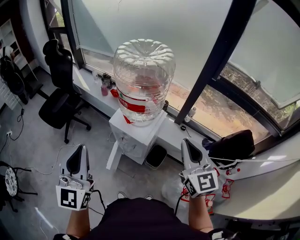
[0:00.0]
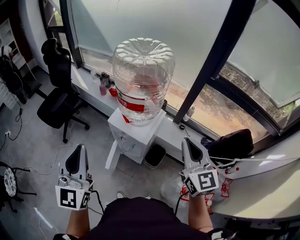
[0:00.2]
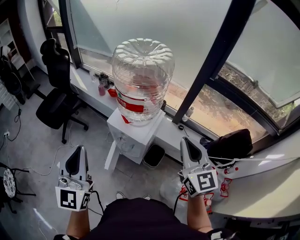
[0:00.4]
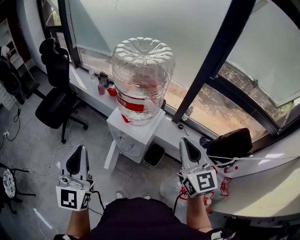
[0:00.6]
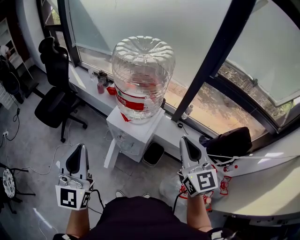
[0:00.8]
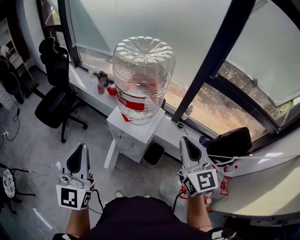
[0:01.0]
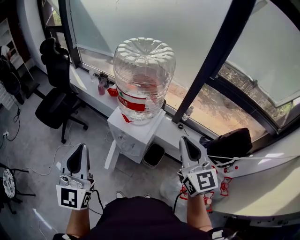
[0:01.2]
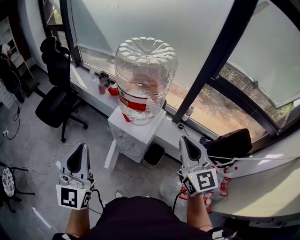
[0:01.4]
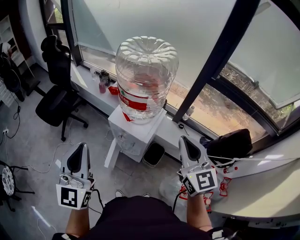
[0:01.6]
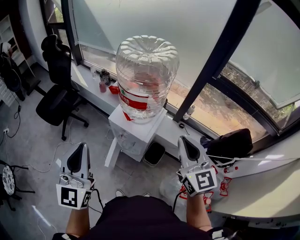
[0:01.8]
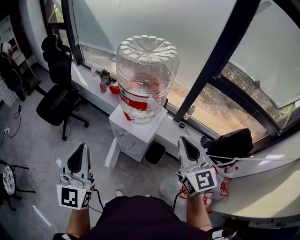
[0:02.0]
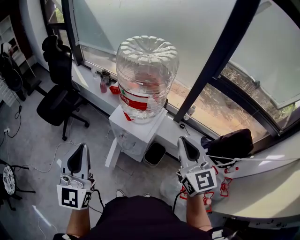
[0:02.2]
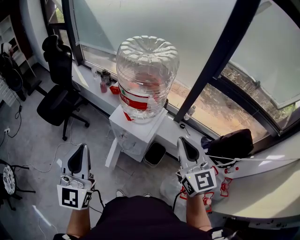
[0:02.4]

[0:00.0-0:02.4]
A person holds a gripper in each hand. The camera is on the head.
0:00.0 to 0:02.4: The grippers make only small movements.

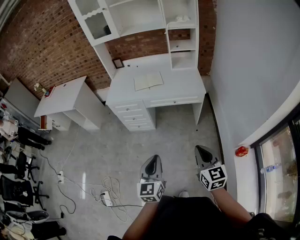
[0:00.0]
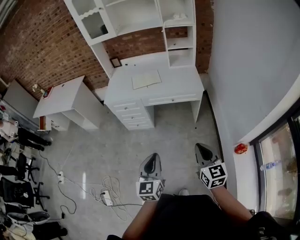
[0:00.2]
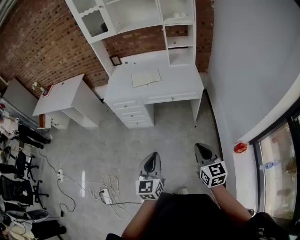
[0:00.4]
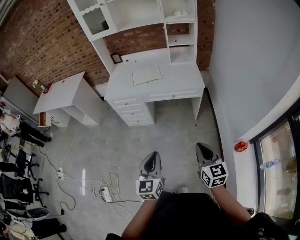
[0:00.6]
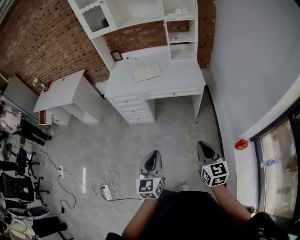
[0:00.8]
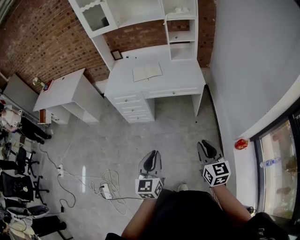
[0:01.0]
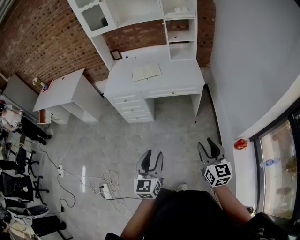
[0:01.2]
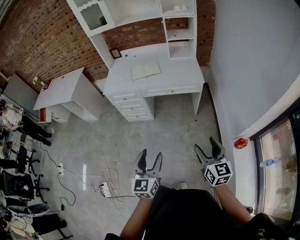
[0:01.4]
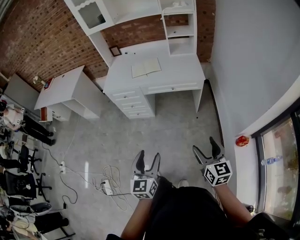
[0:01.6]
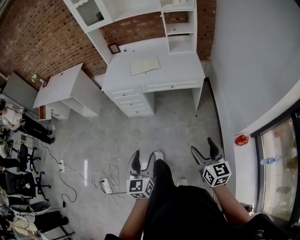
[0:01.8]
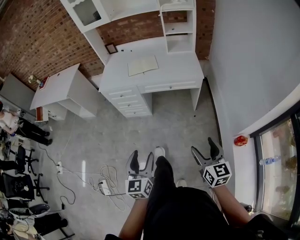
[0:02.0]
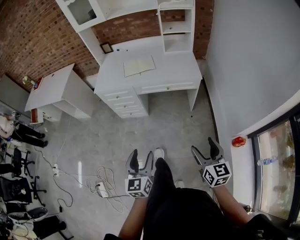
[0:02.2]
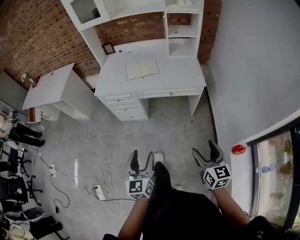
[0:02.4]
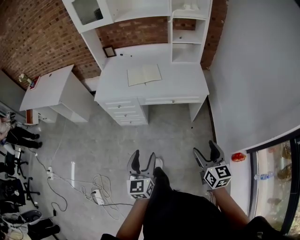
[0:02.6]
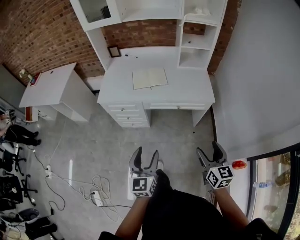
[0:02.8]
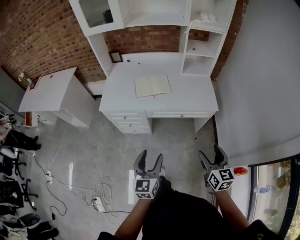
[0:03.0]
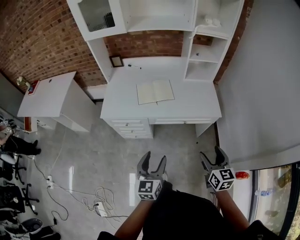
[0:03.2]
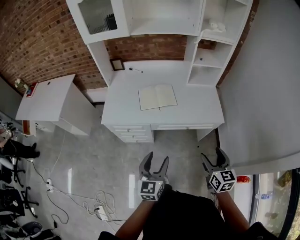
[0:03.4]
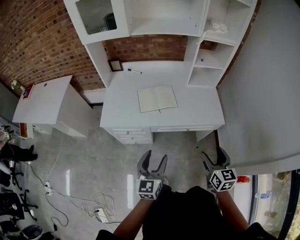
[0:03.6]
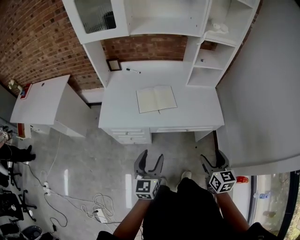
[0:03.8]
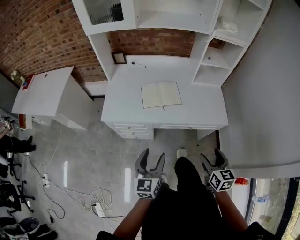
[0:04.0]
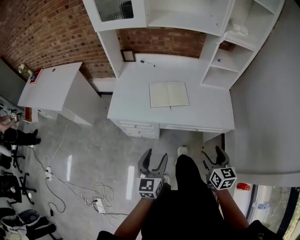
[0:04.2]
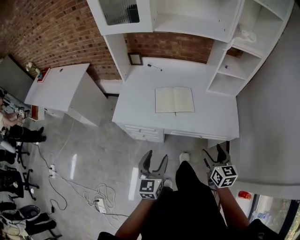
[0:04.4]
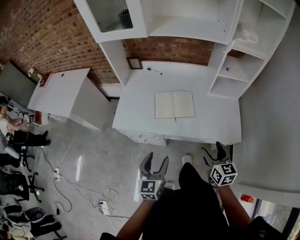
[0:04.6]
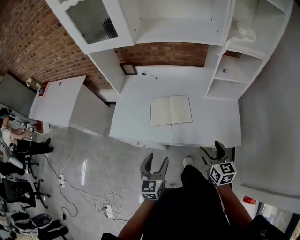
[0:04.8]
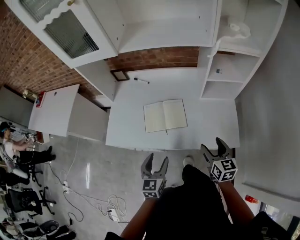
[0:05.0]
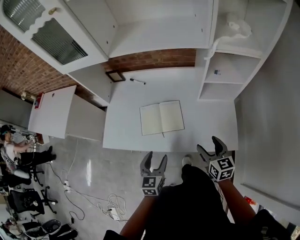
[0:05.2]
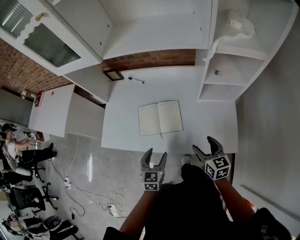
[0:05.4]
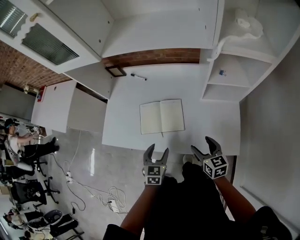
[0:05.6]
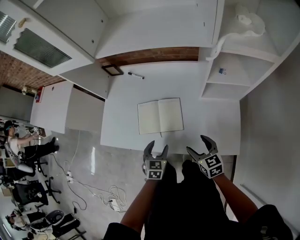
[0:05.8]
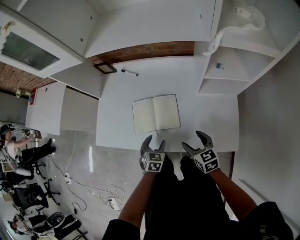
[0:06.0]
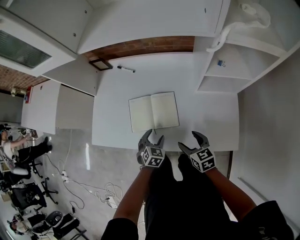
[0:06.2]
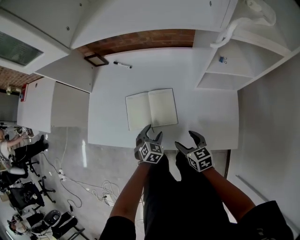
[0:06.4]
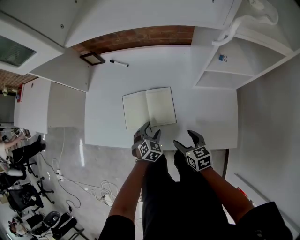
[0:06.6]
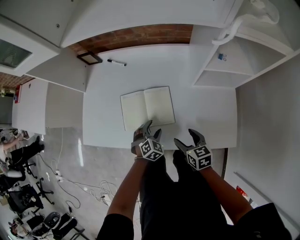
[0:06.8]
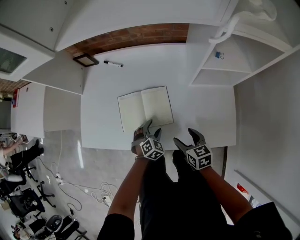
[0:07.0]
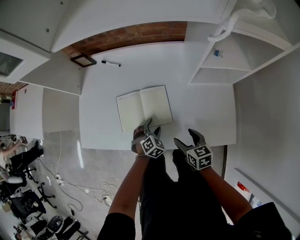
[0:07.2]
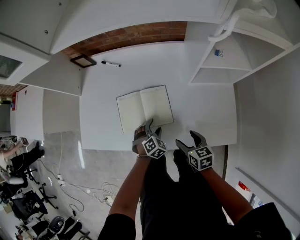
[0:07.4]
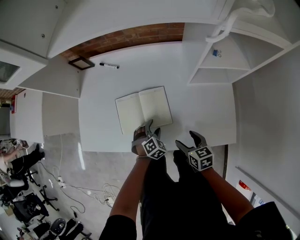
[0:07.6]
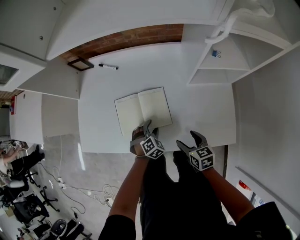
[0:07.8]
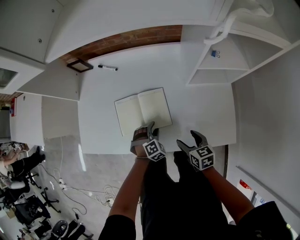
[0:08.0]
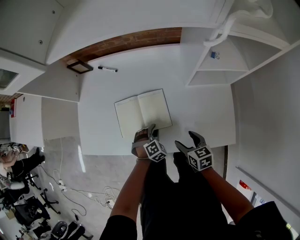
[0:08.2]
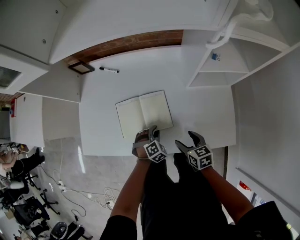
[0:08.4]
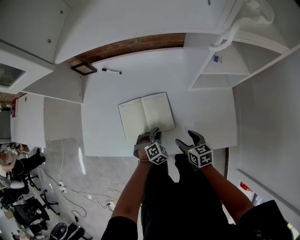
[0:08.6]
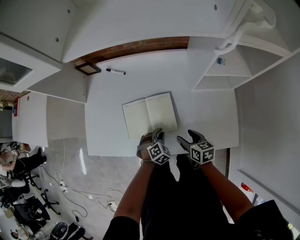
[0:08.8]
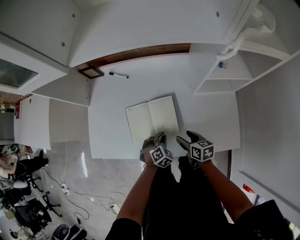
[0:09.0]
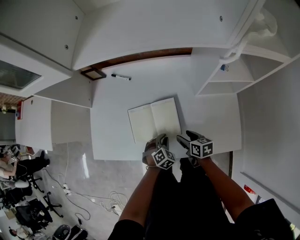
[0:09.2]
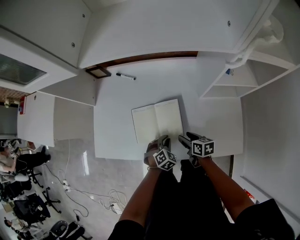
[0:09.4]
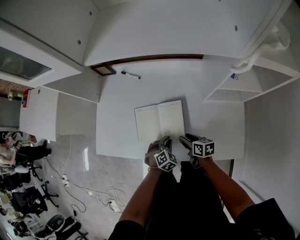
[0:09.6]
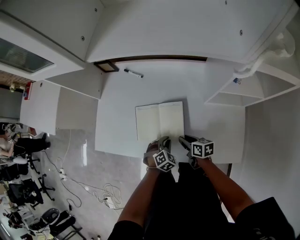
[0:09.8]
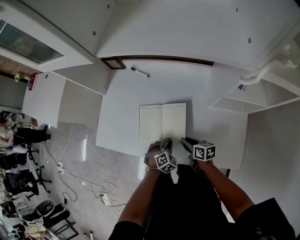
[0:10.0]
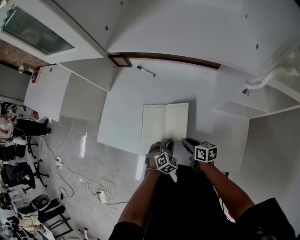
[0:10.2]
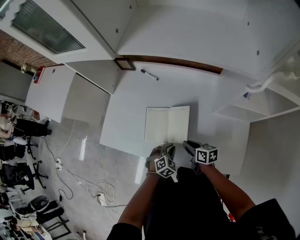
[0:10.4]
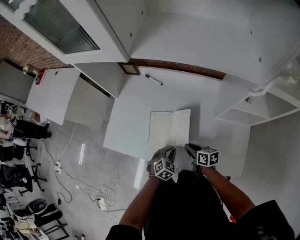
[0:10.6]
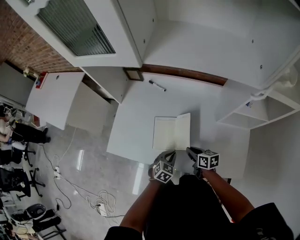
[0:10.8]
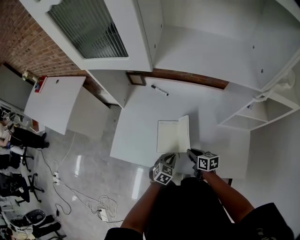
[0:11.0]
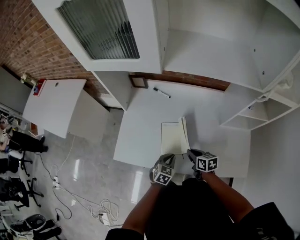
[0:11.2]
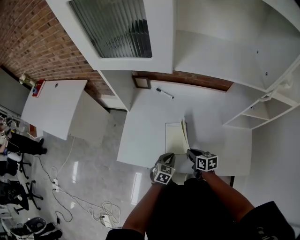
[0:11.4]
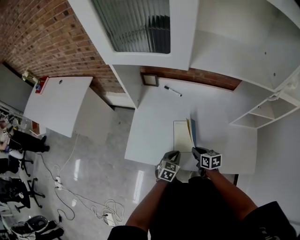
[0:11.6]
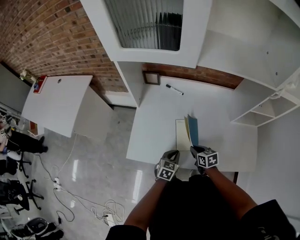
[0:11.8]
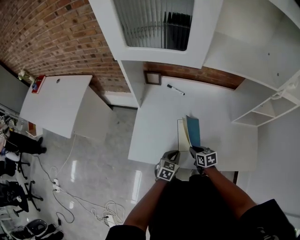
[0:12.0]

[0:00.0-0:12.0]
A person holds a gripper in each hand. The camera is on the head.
0:00.0 to 0:01.6: The left gripper opens up; the right gripper changes place by approximately 5 cm, and opens up.
0:01.6 to 0:03.0: The grippers both shift forward by some 30 cm.
0:03.0 to 0:04.4: The two grippers go approximately 20 cm forward and to the left.
0:04.4 to 0:06.0: The left gripper goes approximately 40 cm forward, downward and to the right, and points its fingers approximately 30 degrees further downward; the right gripper travels forward and downward by some 30 cm, and changes its angle by about 20 degrees.
0:06.0 to 0:07.6: The two grippers go some 10 cm downward. The left gripper rotates roughly 40 degrees.
0:07.6 to 0:09.0: The right gripper moves forward, approximately 5 cm, while the left gripper closes.
0:09.0 to 0:10.4: The right gripper ends up about 5 cm from where it was, and closes up.
0:10.4 to 0:12.0: Both grippers travel together to the left, roughly 20 cm. The left gripper swivels about 40 degrees, while the right gripper turns by some 20 degrees.

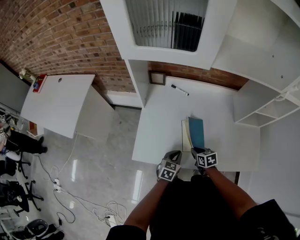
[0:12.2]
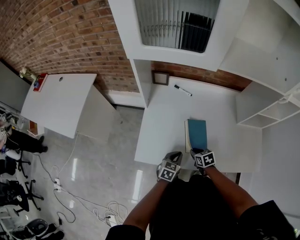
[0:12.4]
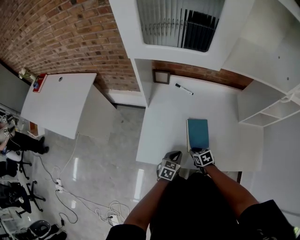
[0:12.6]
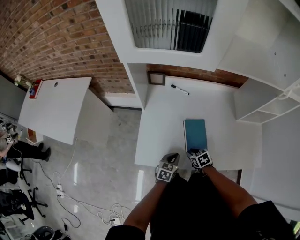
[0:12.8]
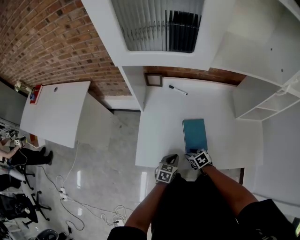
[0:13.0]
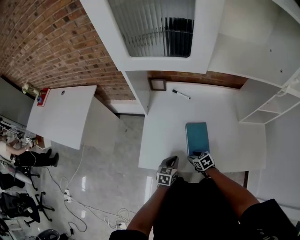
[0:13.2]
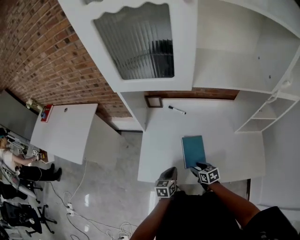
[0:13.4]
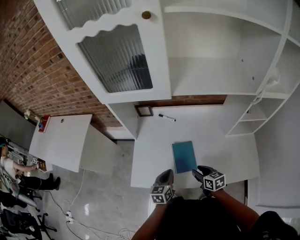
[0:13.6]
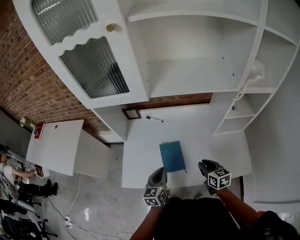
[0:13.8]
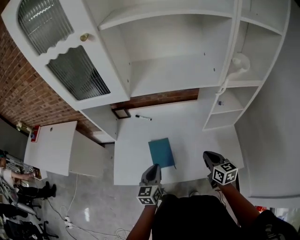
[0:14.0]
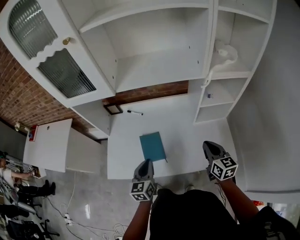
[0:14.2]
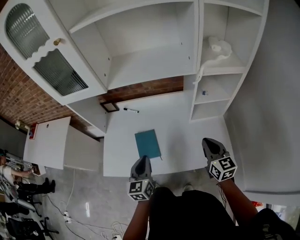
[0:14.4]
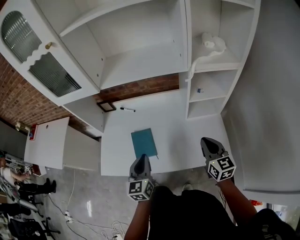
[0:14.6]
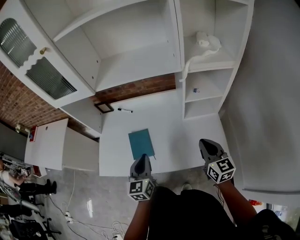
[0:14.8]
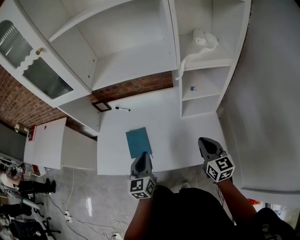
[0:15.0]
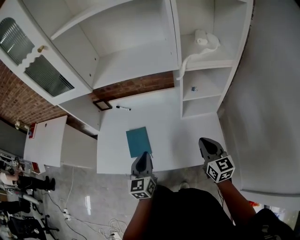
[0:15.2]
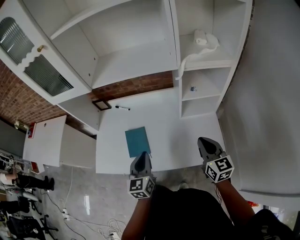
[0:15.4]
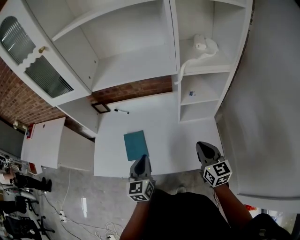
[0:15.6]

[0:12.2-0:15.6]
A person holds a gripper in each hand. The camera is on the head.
0:12.2 to 0:13.8: The right gripper heads upward and to the right, covering some 25 cm, and swivels some 20 degrees. Meanwhile the left gripper shifts roughly 15 cm upward, and turns by approximately 20 degrees.
0:13.8 to 0:15.6: The grippers both shift to the right and upward by about 25 cm. The right gripper changes its angle by about 20 degrees.

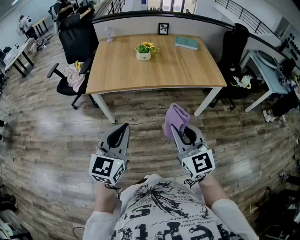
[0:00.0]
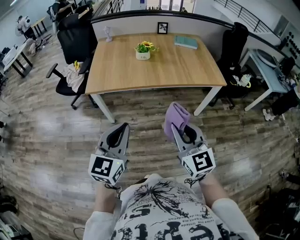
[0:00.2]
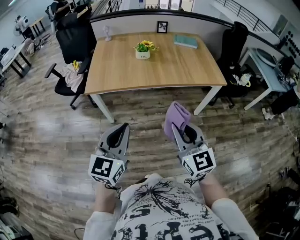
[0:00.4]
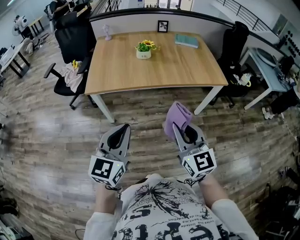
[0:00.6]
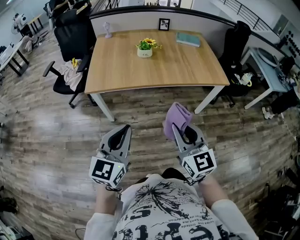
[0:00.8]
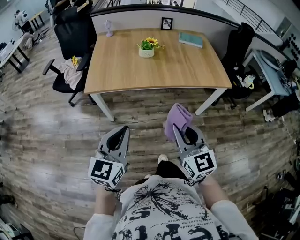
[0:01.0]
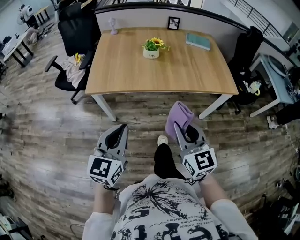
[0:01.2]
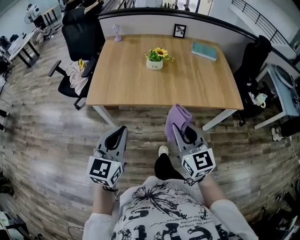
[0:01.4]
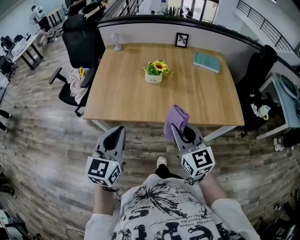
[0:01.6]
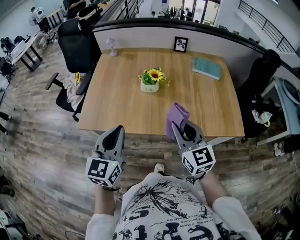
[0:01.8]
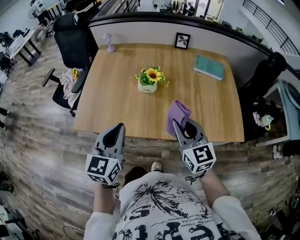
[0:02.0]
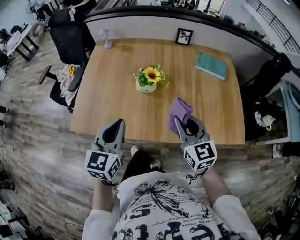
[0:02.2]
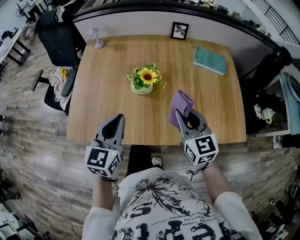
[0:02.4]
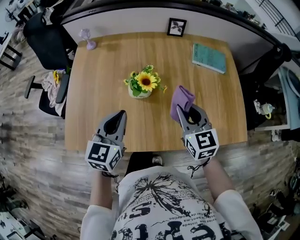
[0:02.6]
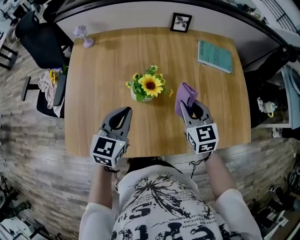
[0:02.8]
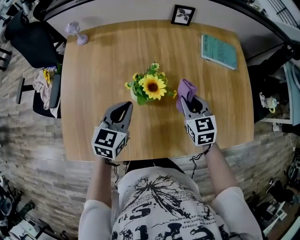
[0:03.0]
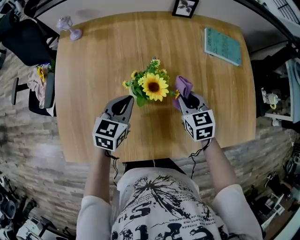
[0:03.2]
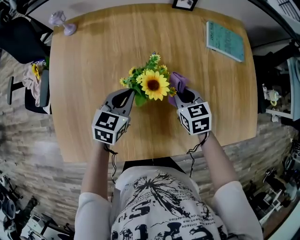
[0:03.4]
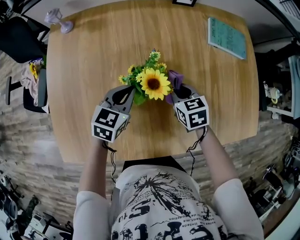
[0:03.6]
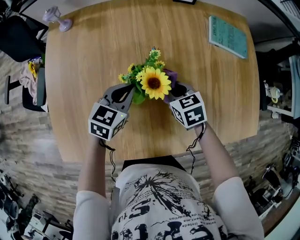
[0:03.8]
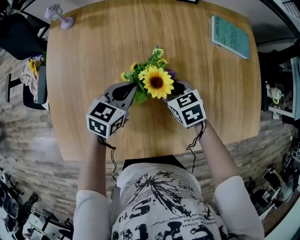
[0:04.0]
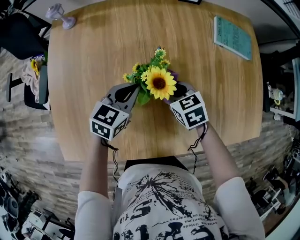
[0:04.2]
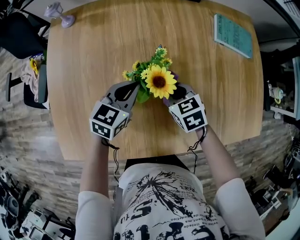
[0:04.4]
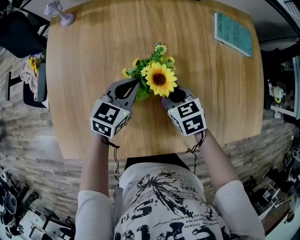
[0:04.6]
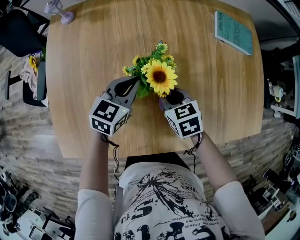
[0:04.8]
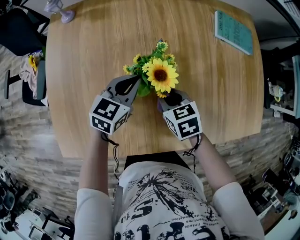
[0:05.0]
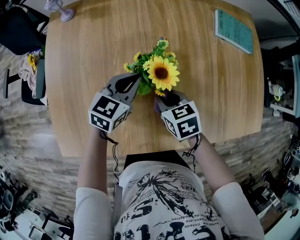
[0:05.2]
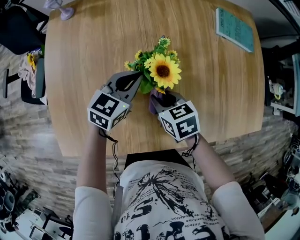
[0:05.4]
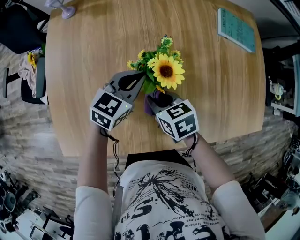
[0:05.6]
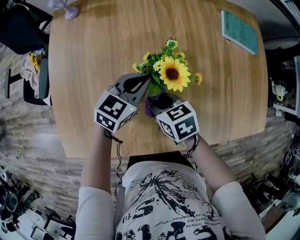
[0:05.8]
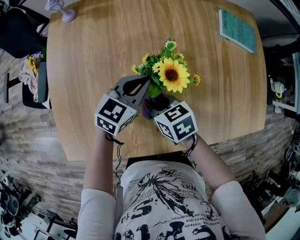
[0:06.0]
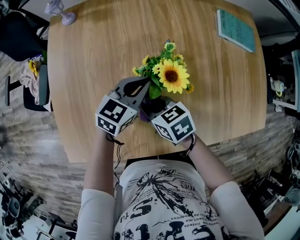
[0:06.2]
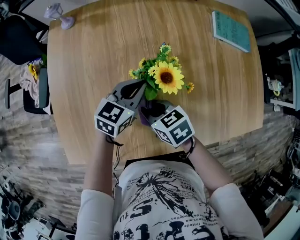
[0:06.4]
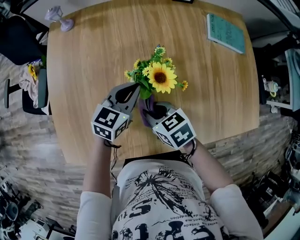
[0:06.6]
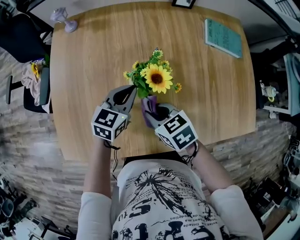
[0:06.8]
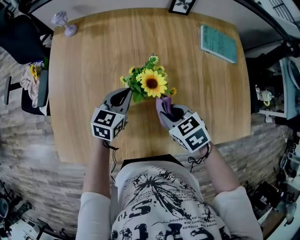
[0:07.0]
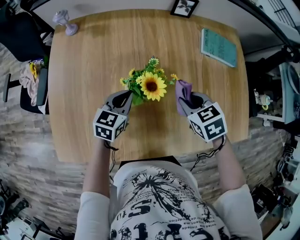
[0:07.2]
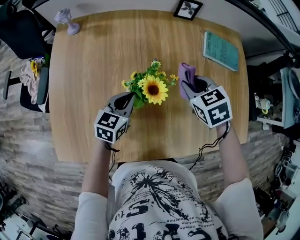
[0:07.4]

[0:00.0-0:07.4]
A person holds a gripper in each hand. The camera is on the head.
0:00.0 to 0:01.4: The grippers both shift forward by roughly 20 cm.
0:01.4 to 0:03.0: The two grippers travel together, forward, about 50 cm. The right gripper turns by some 30 degrees.
0:03.0 to 0:04.4: The left gripper heads downward and forward, covering approximately 10 cm. The right gripper shifts roughly 15 cm downward and to the left, and turns by about 20 degrees.
0:04.4 to 0:06.0: The right gripper goes about 10 cm to the left and backward.
0:06.0 to 0:07.4: The right gripper heads to the right, upward and forward, covering about 25 cm, and swivels roughly 30 degrees.
